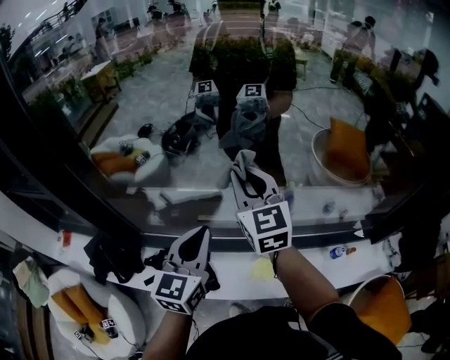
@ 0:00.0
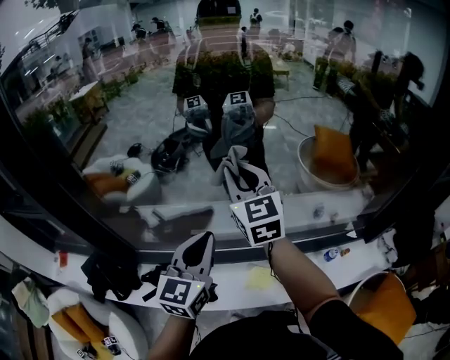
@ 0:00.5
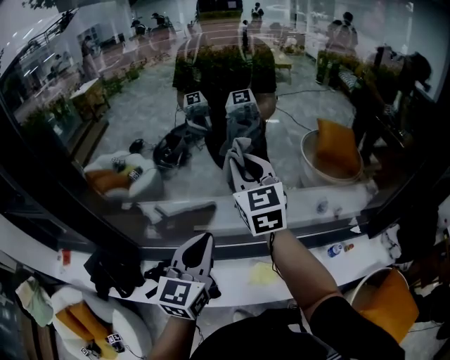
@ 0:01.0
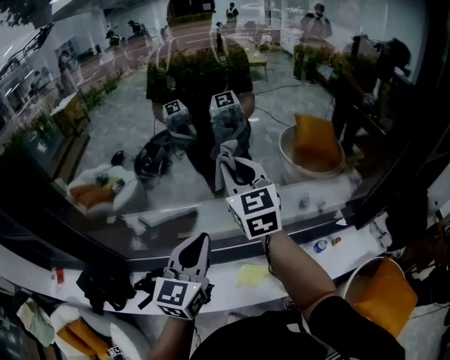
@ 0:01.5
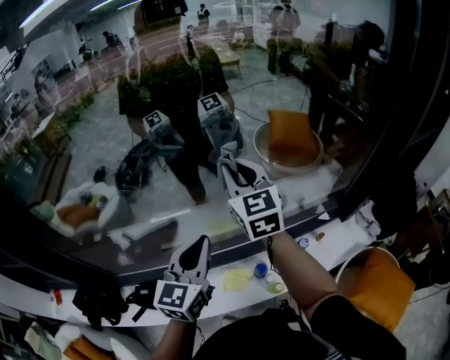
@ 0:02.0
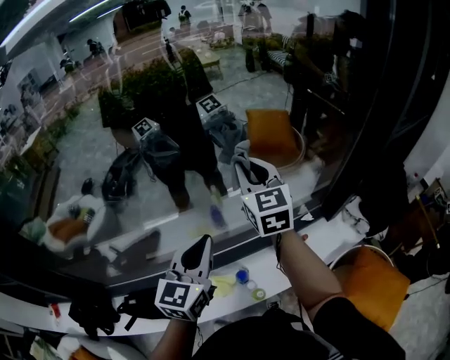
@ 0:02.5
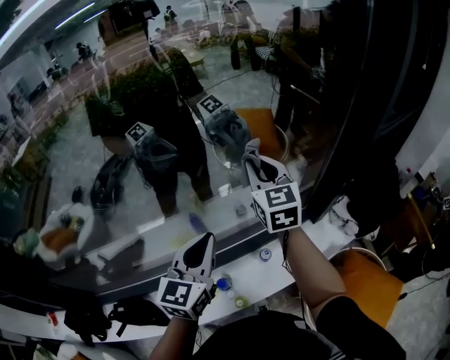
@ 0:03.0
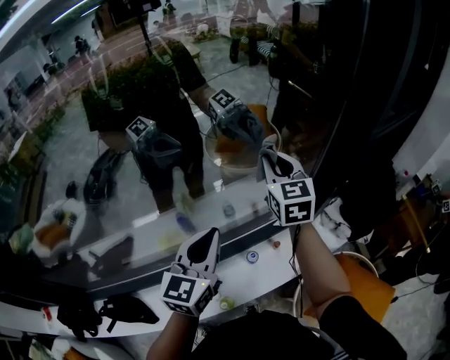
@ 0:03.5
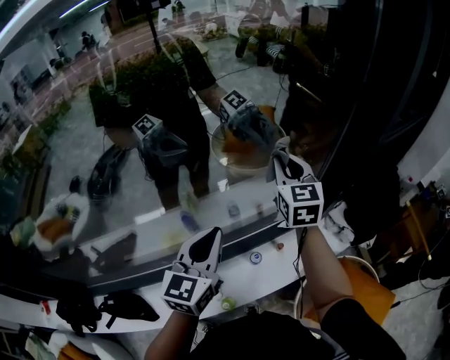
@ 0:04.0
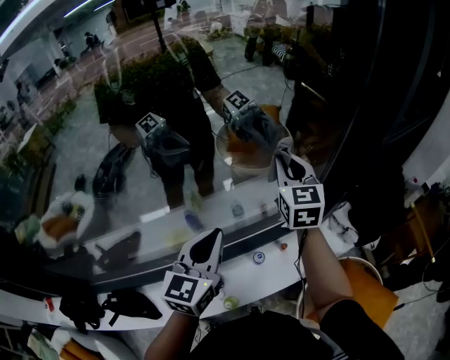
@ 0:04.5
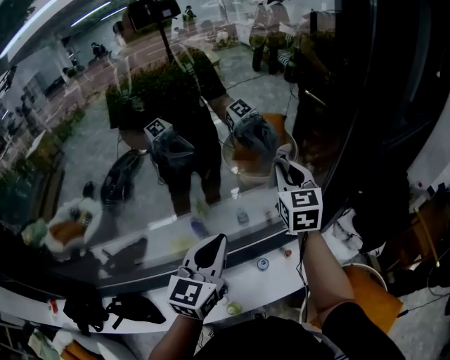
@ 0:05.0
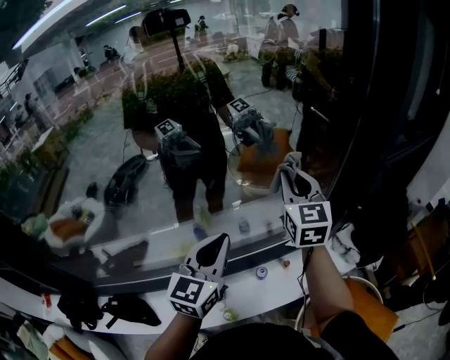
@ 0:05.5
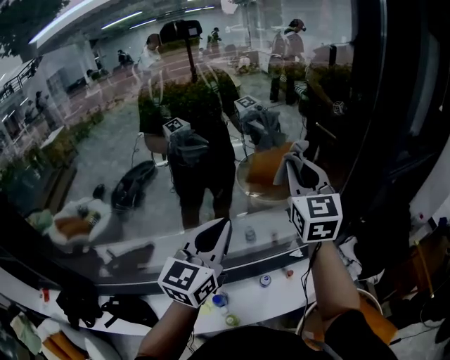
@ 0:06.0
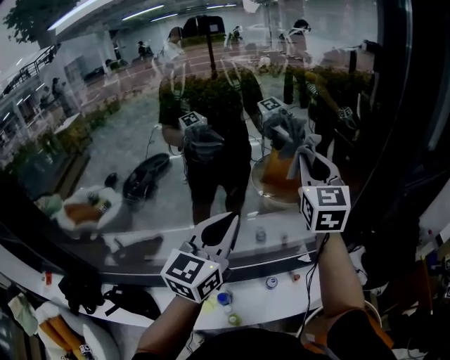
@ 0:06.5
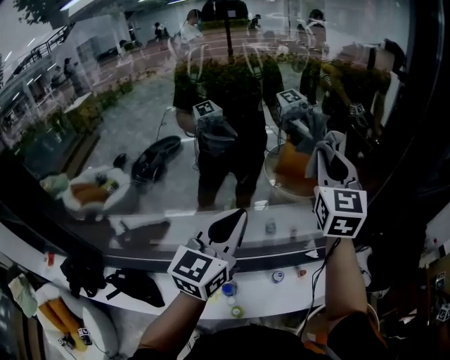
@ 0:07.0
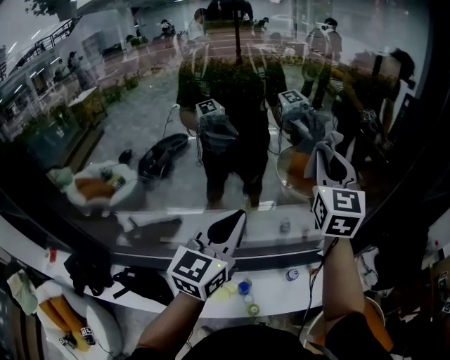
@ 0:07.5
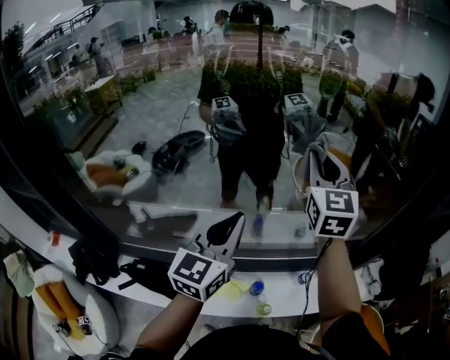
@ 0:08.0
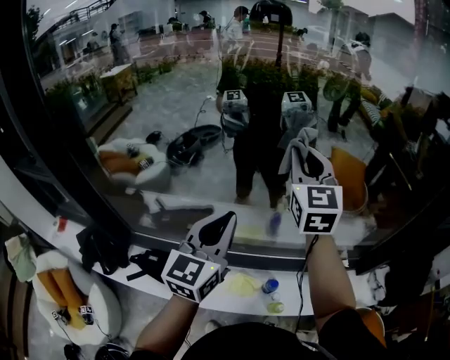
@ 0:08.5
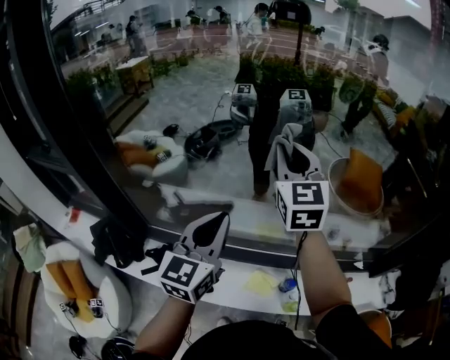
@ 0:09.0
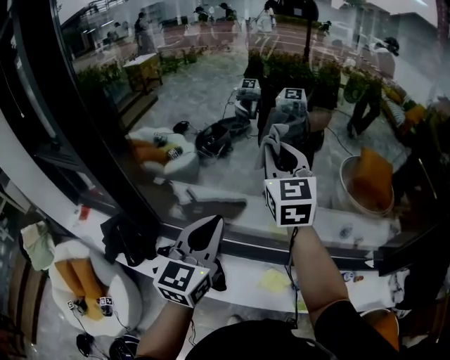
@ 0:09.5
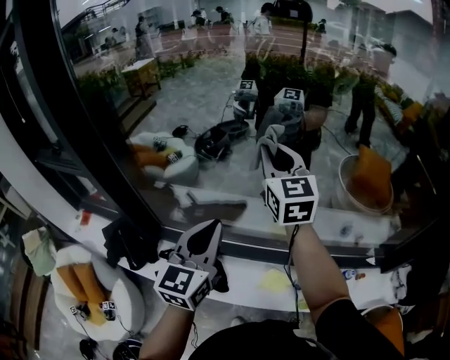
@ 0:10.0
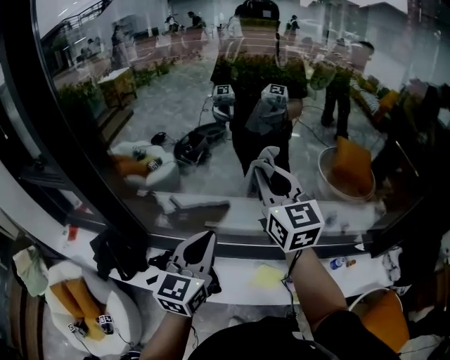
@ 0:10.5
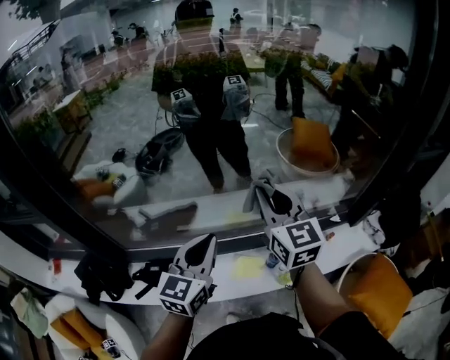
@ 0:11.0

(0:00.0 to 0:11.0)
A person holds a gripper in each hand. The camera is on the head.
0:00.0 - 0:02.0: The grippers both shift to the right by about 25 cm.
0:02.0 - 0:03.5: The left gripper heads to the right and forward, covering about 35 cm, while the right gripper goes roughly 40 cm to the right.
0:03.5 - 0:05.5: The right gripper travels upward by roughly 5 cm.
0:05.5 - 0:07.5: The right gripper is displaced to the left and upward by some 20 cm. Meanwhile the left gripper travels to the left by some 15 cm.
0:07.5 - 0:09.0: The grippers both shift to the left by approximately 40 cm. The right gripper changes its angle by some 20 degrees.
0:09.0 - 0:11.0: The left gripper moves backward, downward and to the right, about 10 cm. The right gripper travels backward, to the right and downward by roughly 20 cm.

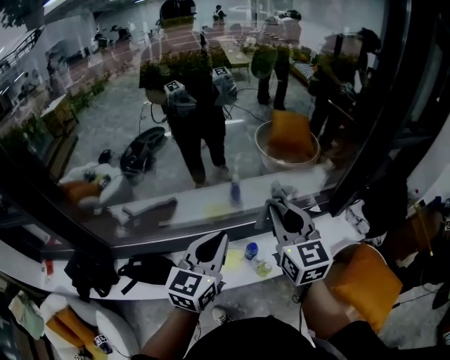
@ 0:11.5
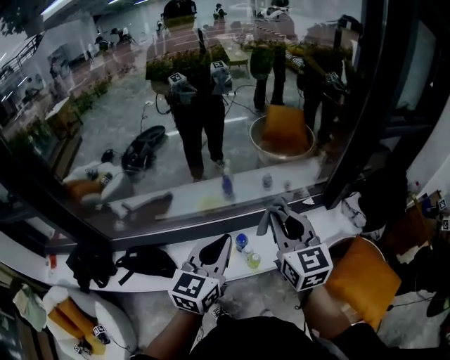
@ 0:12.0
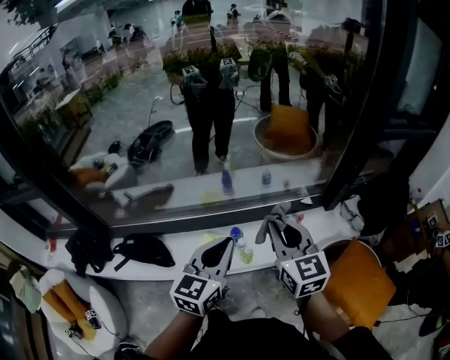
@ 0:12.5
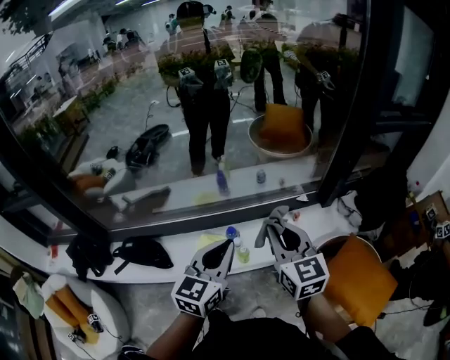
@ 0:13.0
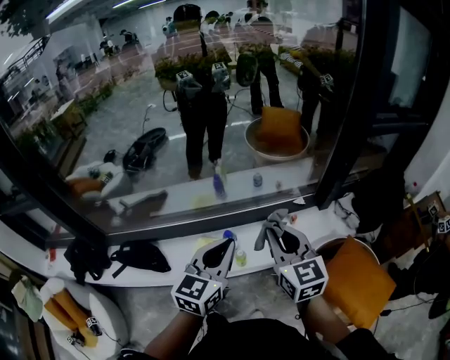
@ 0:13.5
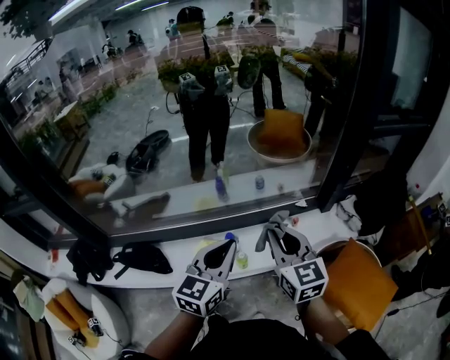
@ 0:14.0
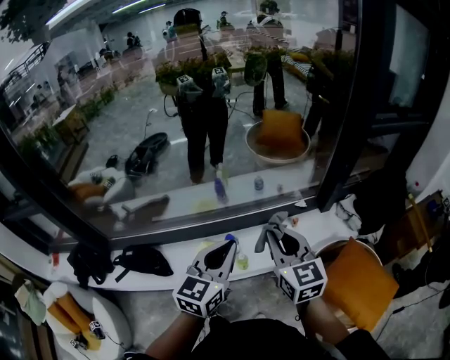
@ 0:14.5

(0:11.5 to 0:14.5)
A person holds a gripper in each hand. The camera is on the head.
0:11.5 - 0:13.0: The grippers both shift to the right and backward by roughly 20 cm.
0:13.0 - 0:14.5: The grippers make only small movements.

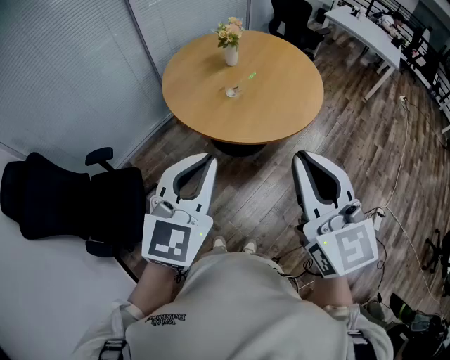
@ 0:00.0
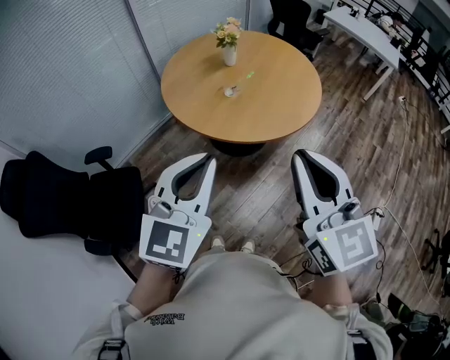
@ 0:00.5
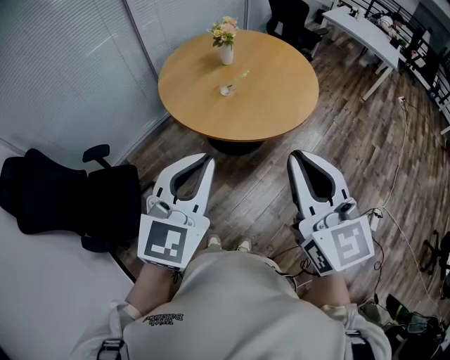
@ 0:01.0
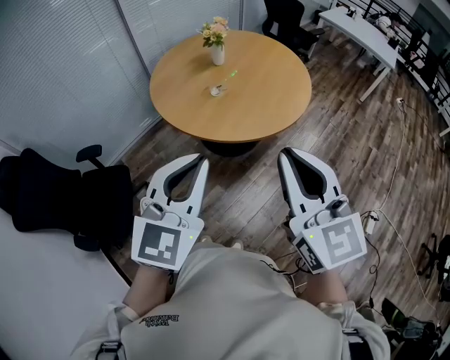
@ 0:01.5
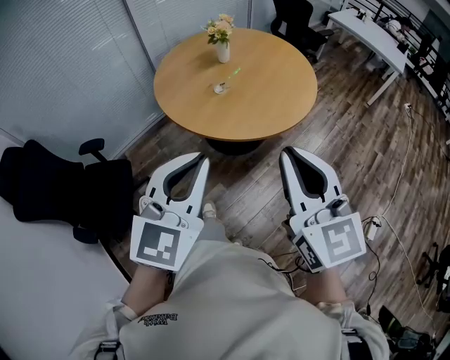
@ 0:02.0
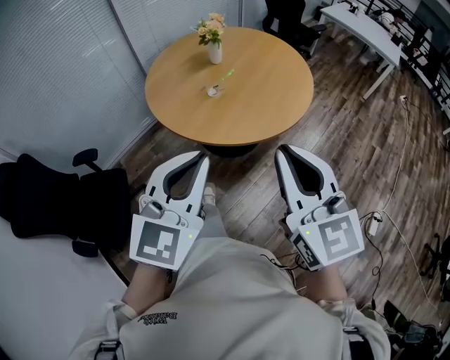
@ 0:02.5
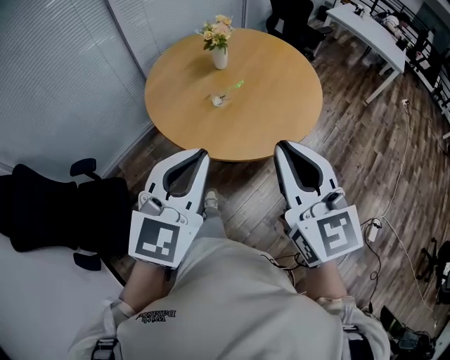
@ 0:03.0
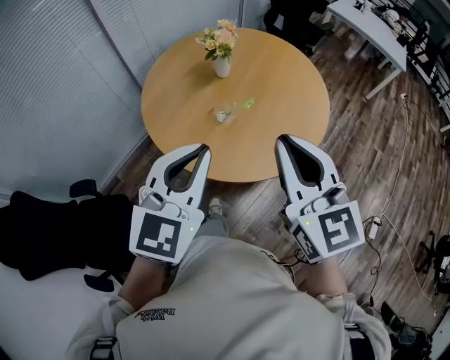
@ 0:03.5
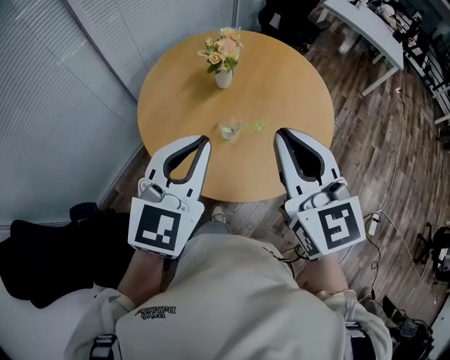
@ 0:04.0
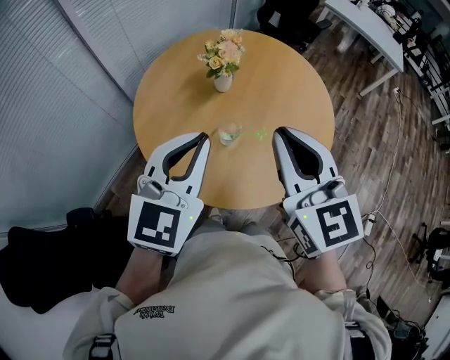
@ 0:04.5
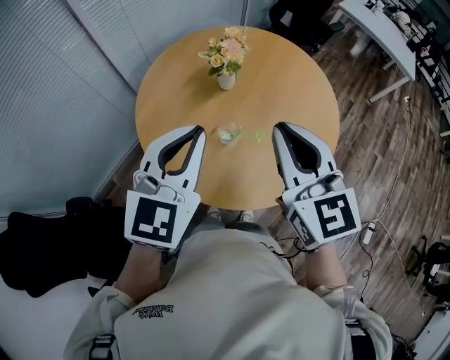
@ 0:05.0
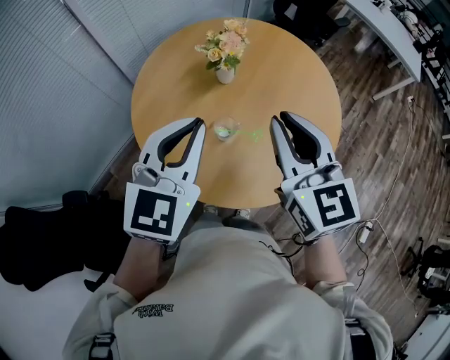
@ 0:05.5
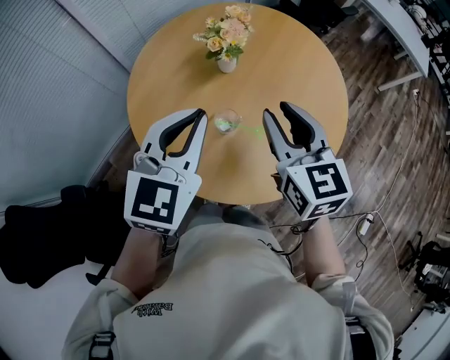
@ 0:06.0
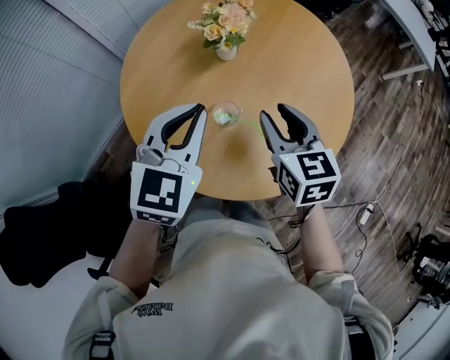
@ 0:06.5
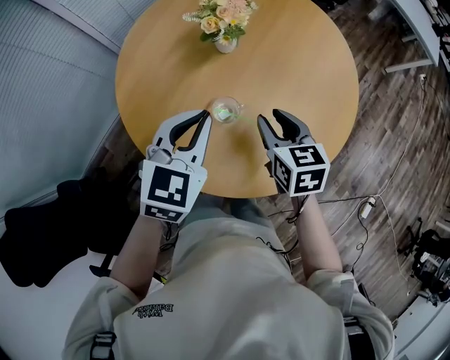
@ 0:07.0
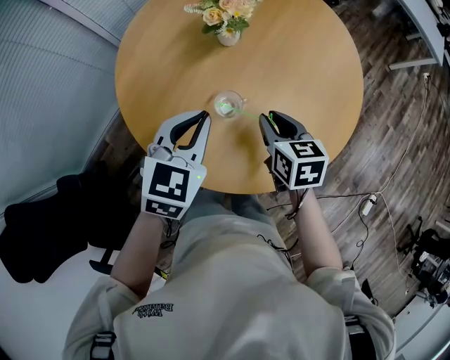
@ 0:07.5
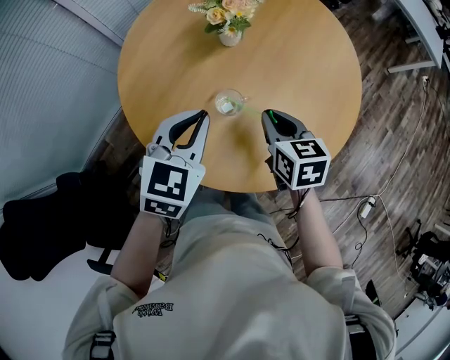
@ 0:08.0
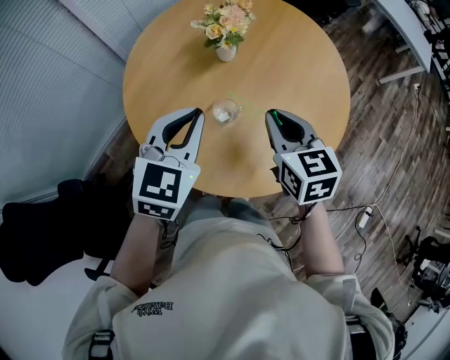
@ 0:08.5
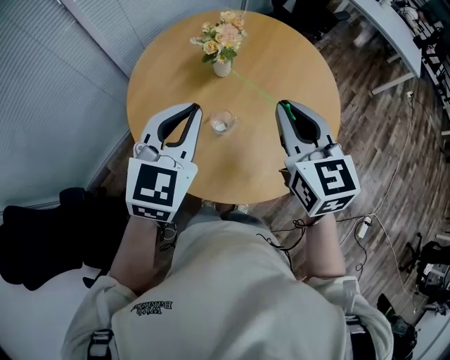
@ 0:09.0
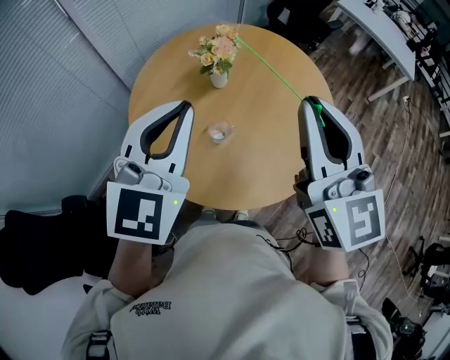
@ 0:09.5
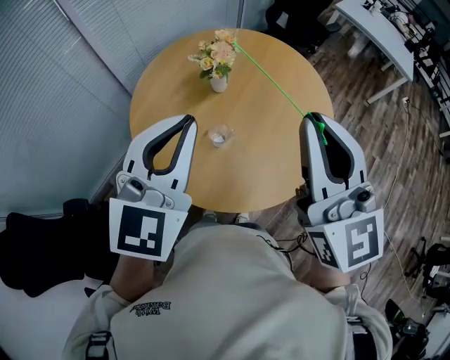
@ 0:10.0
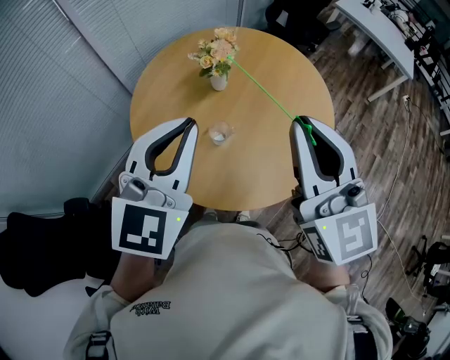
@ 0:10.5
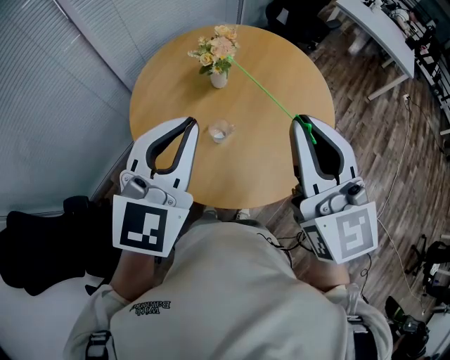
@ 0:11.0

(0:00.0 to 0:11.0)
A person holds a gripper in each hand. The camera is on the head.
0:00.0 - 0:02.0: The two grippers go about 10 cm to the right.
0:02.0 - 0:03.5: The grippers both shift forward by about 25 cm.
0:03.5 - 0:05.5: Both grippers move forward, approximately 20 cm.
0:05.5 - 0:07.5: The left gripper travels downward by approximately 20 cm, and swivels some 20 degrees. Meanwhile the right gripper moves downward, some 25 cm, and tilts its fingers some 30 degrees downward.
0:07.5 - 0:09.0: The left gripper goes some 15 cm upward, while the right gripper shifts approximately 25 cm upward, and changes its angle by roughly 30 degrees.
0:09.0 - 0:11.0: Both grippers move upward and backward, approximately 15 cm.

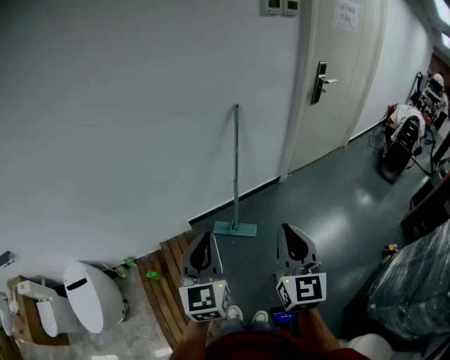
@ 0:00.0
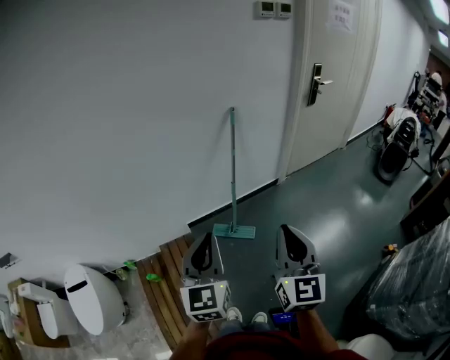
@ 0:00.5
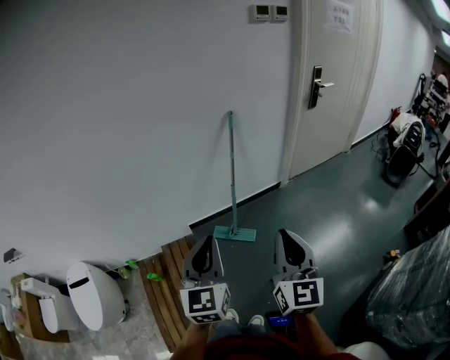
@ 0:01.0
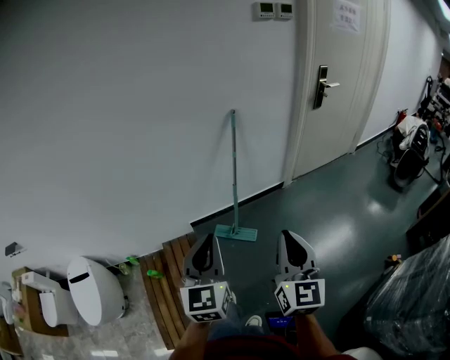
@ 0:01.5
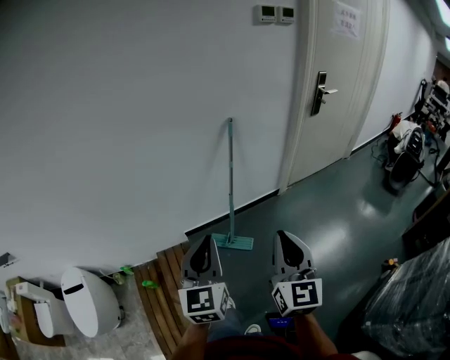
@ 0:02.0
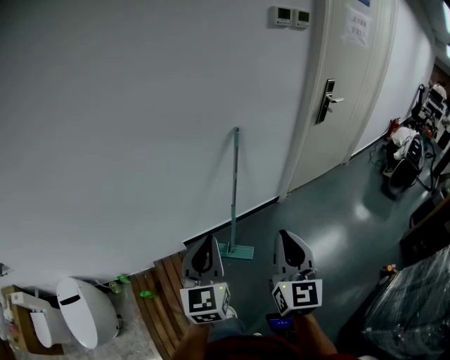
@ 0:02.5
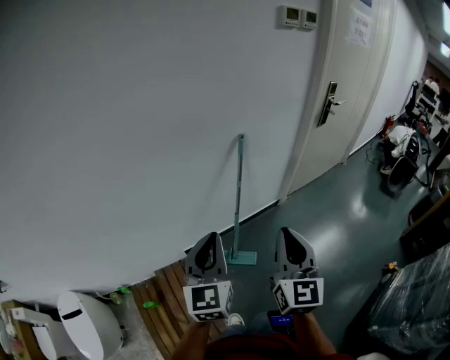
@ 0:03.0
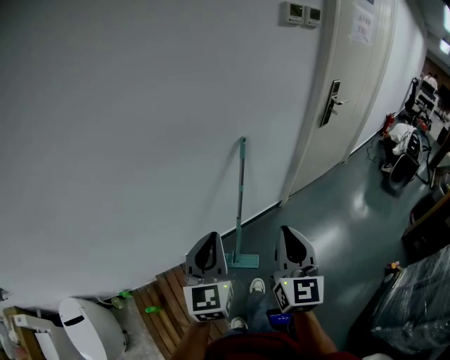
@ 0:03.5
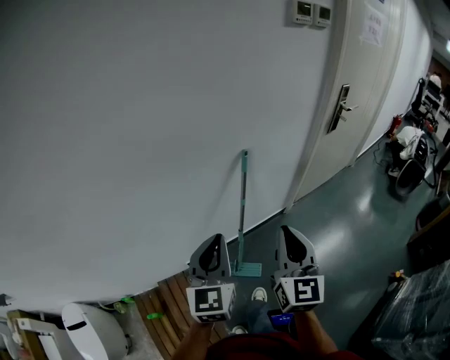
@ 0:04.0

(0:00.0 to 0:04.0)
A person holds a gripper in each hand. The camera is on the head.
0:00.0 - 0:02.0: The two grippers go approximately 5 cm to the right.
0:02.0 - 0:04.0: The two grippers go some 30 cm forward.
